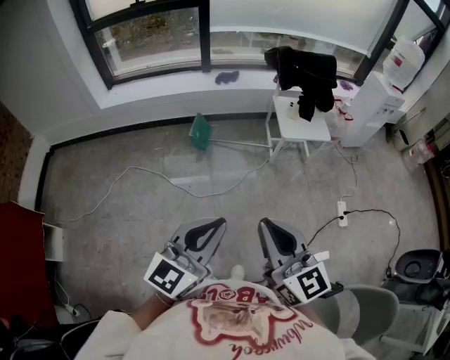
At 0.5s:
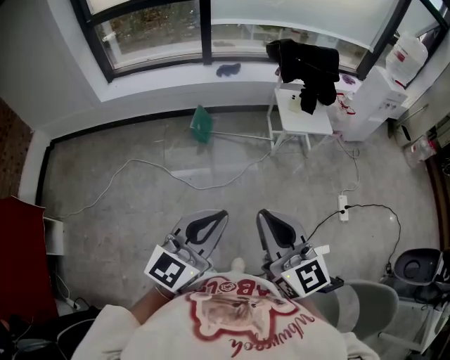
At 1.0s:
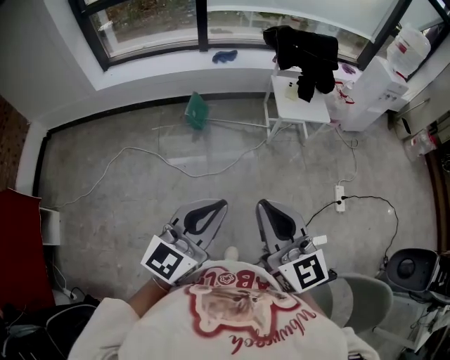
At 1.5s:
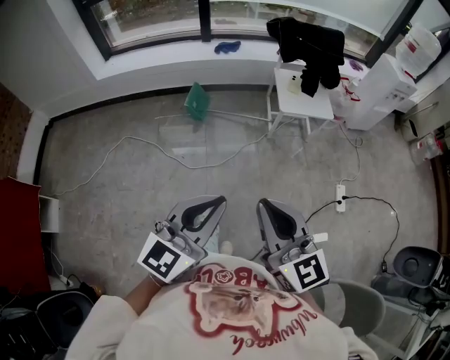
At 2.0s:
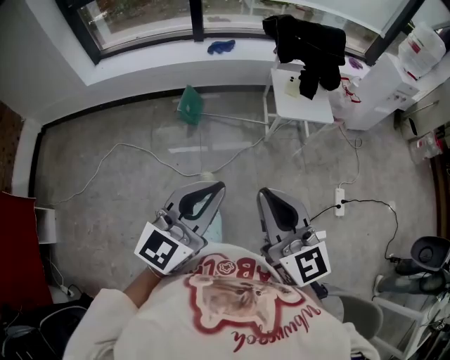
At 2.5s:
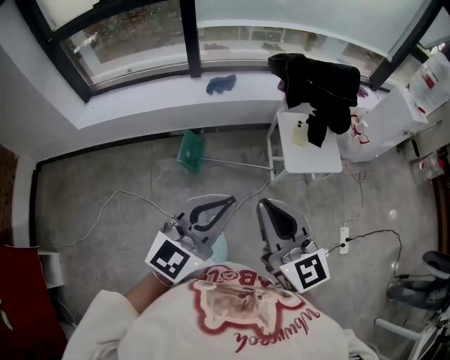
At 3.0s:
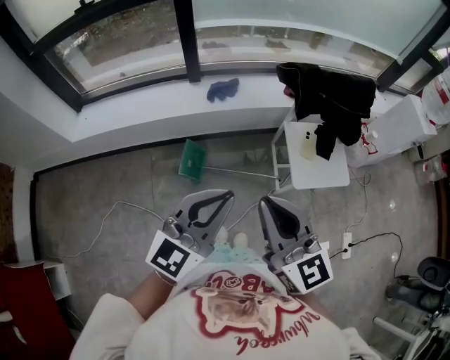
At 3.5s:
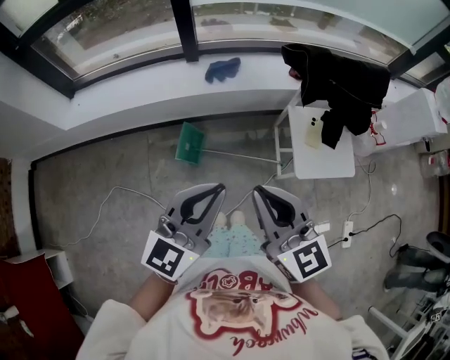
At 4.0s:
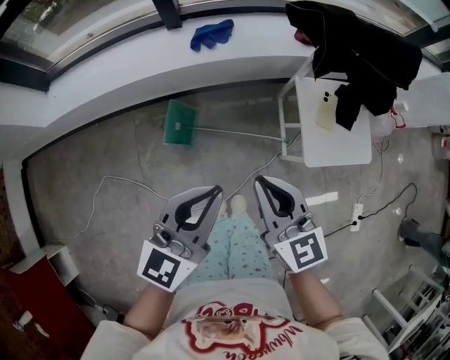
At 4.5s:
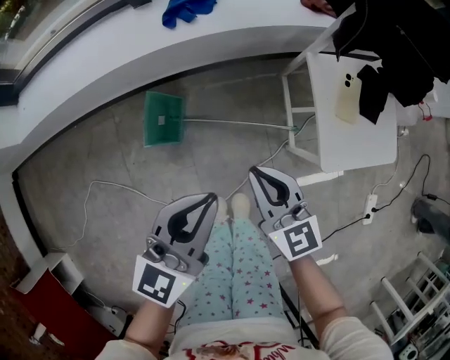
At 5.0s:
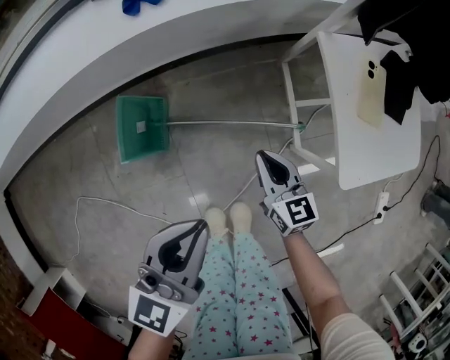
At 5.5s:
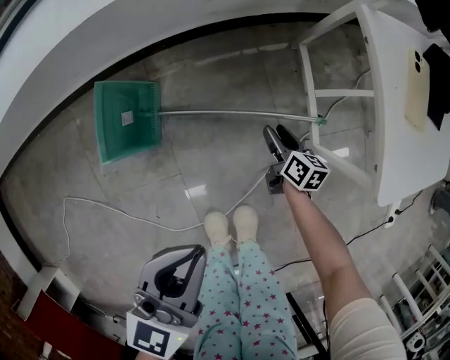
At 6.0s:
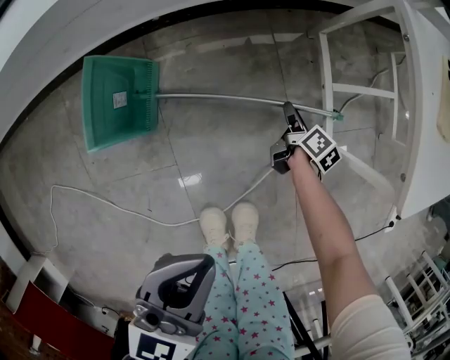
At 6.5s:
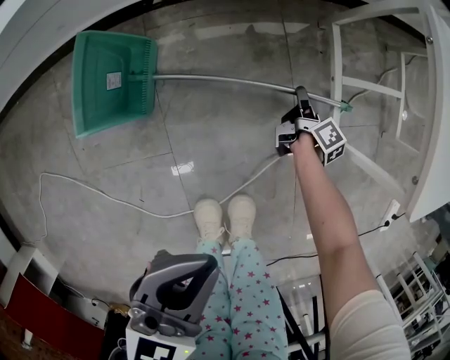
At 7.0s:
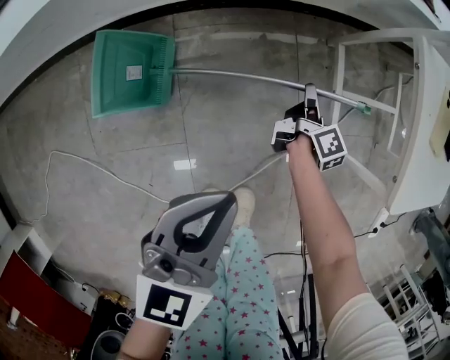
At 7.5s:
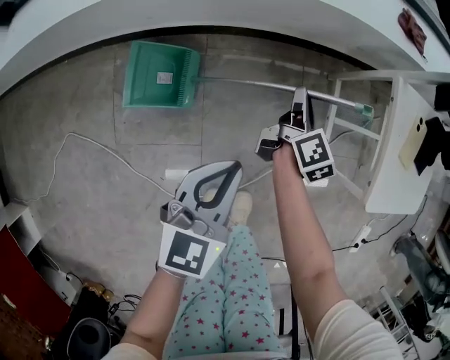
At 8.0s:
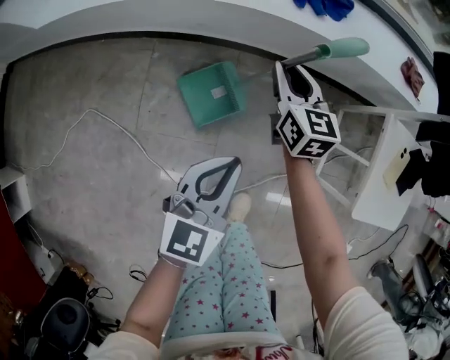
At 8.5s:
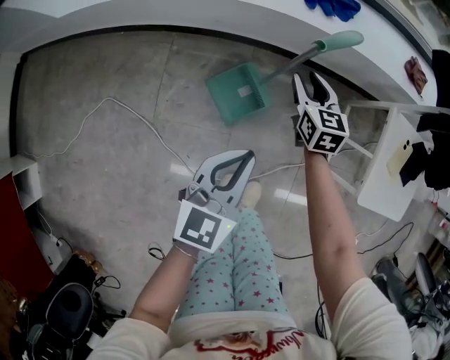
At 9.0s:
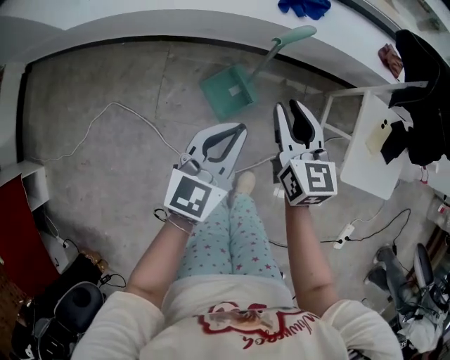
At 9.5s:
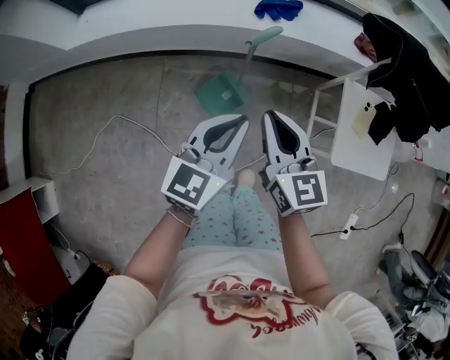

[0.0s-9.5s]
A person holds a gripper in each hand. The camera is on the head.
0.0s to 2.0s: Both grippers travel together forward and to the right, about 15 cm.
2.0s to 4.0s: Both grippers are carried forward, some 50 cm.
4.0s to 5.5s: The left gripper shifts approximately 40 cm downward; the right gripper is displaced downward by some 70 cm, twists some 40 degrees clockwise, seen from behind, and opens.
5.5s to 7.5s: The left gripper moves to the left, about 5 cm. The right gripper heads upward and to the left, covering about 25 cm, turns by approximately 30 degrees, and closes its fingers.
7.5s to 9.5s: The right gripper shifts about 40 cm upward and backward, and swivels some 60 degrees, while the left gripper travels upward by some 30 cm.

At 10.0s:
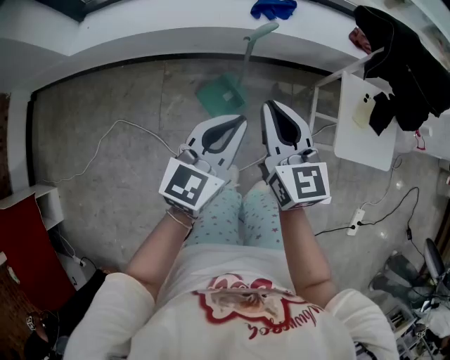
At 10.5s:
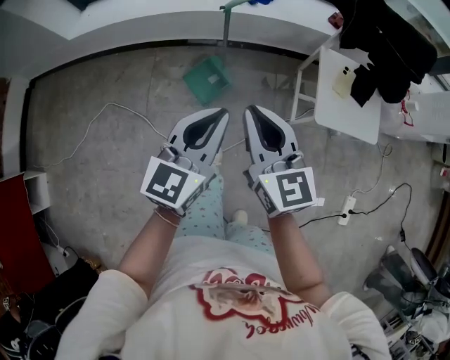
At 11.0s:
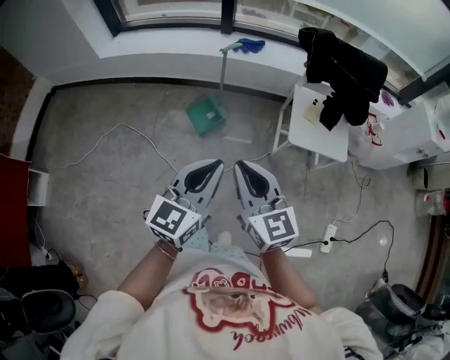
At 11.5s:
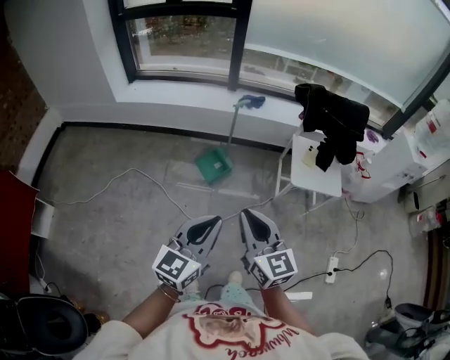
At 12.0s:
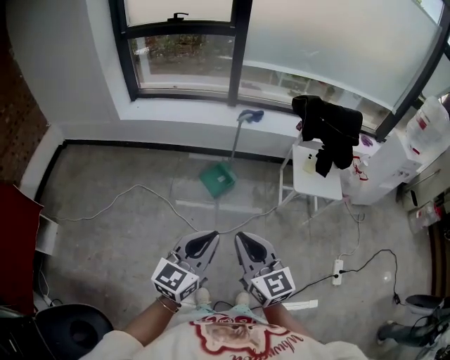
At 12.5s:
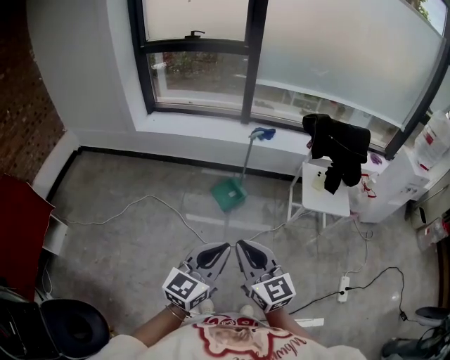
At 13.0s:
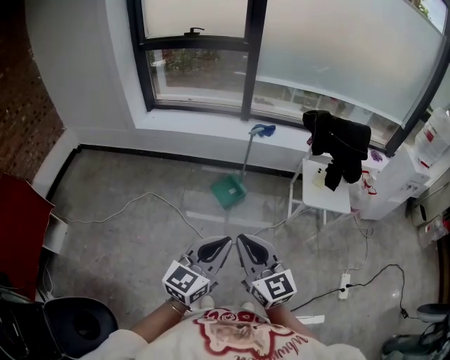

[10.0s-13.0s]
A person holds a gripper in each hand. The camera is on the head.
10.0s to 11.5s: Both grippers are carried backward, roughly 50 cm.
11.5s to 13.0s: The right gripper shifts some 10 cm backward and to the left, while the left gripper travels backward by some 5 cm.

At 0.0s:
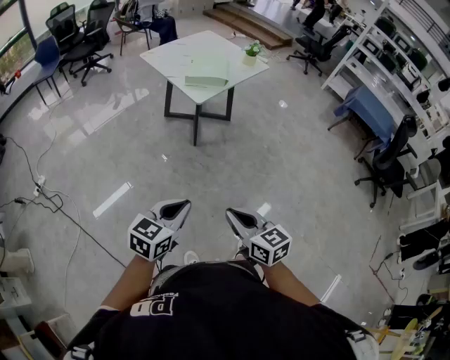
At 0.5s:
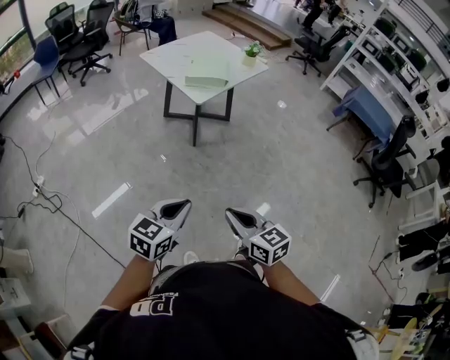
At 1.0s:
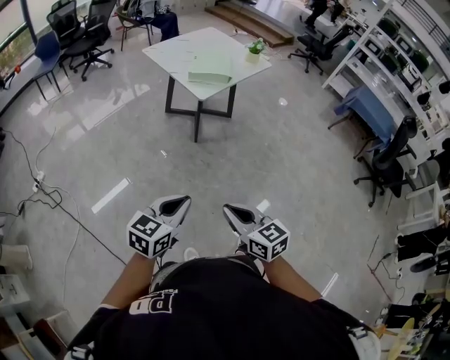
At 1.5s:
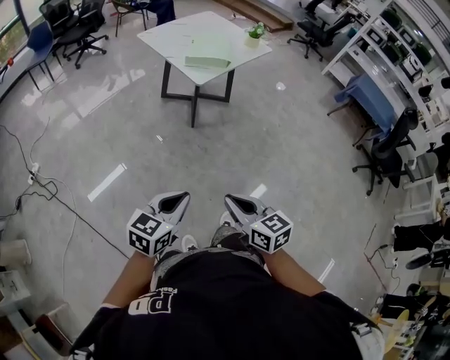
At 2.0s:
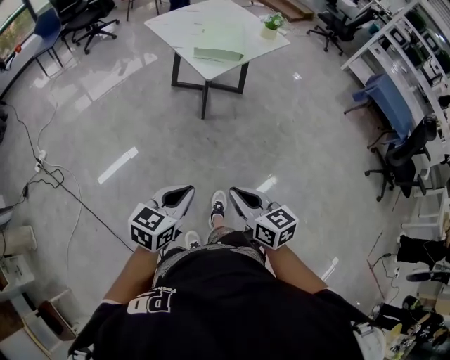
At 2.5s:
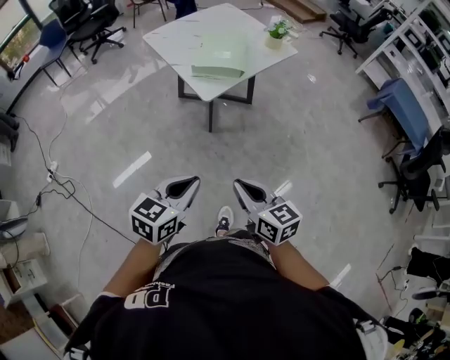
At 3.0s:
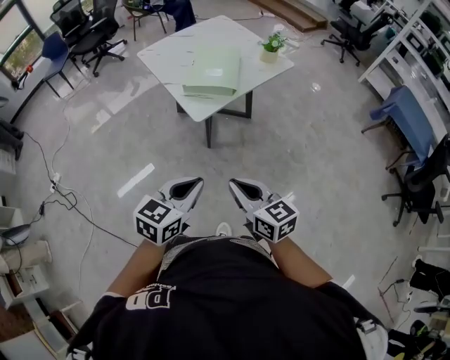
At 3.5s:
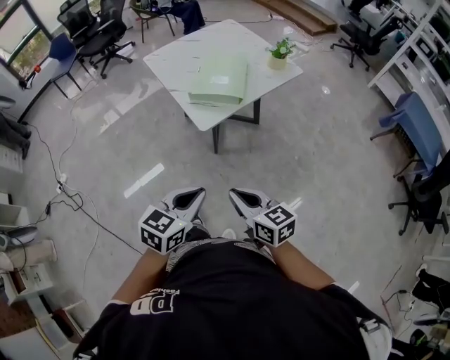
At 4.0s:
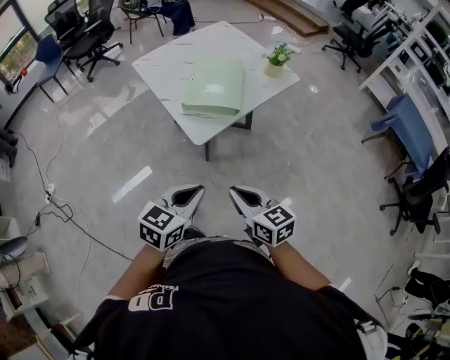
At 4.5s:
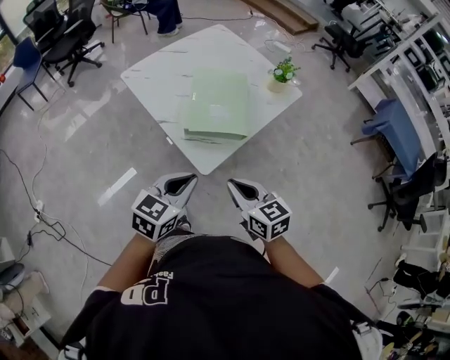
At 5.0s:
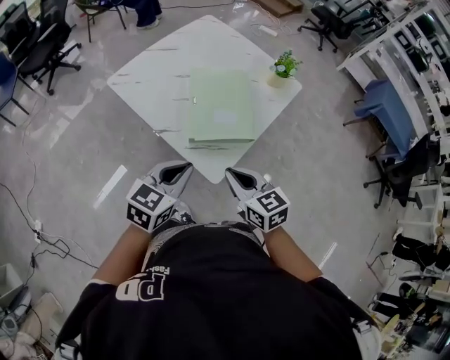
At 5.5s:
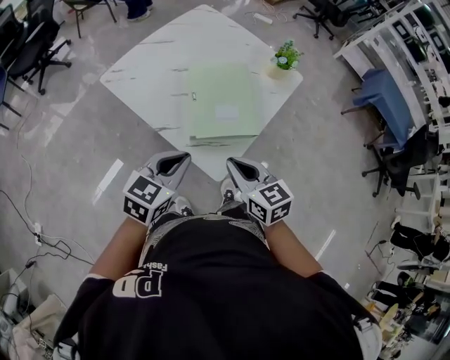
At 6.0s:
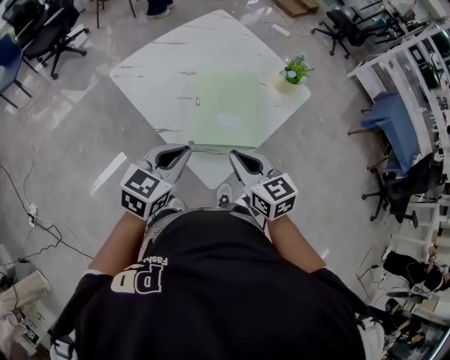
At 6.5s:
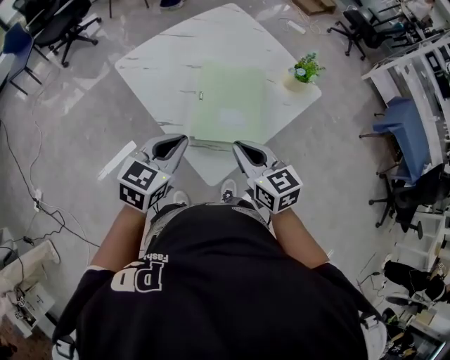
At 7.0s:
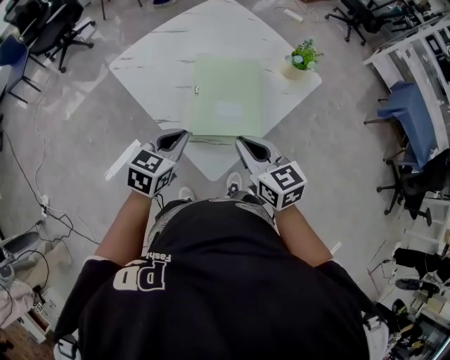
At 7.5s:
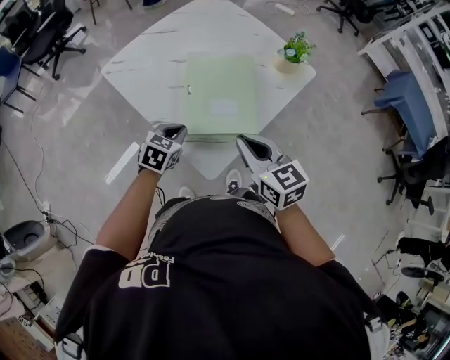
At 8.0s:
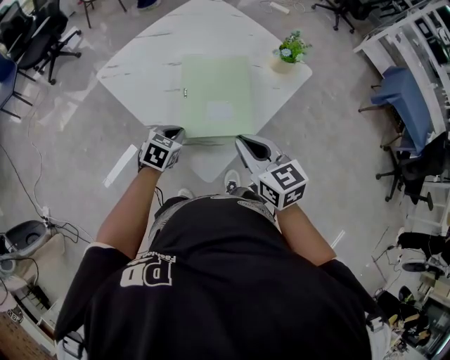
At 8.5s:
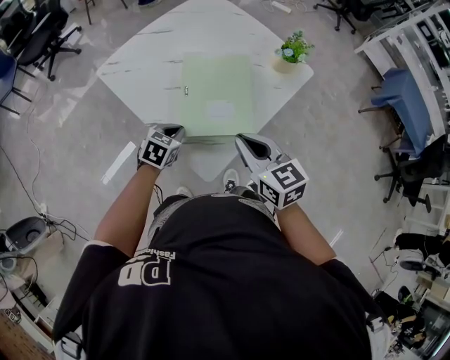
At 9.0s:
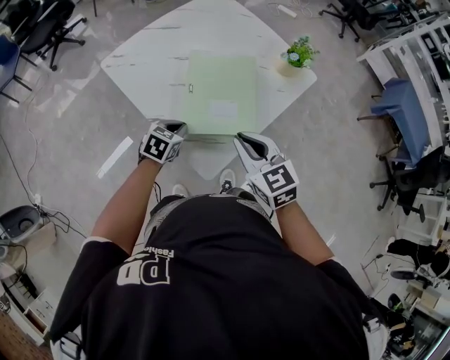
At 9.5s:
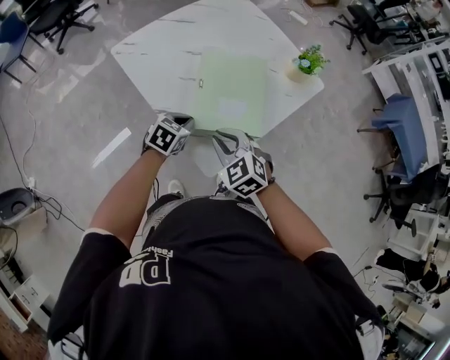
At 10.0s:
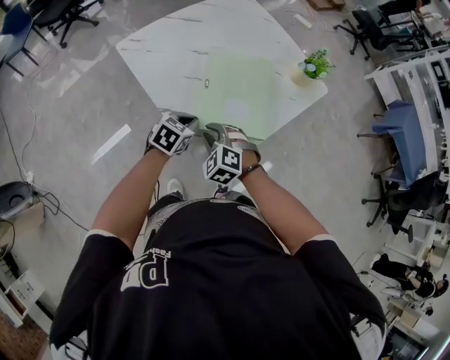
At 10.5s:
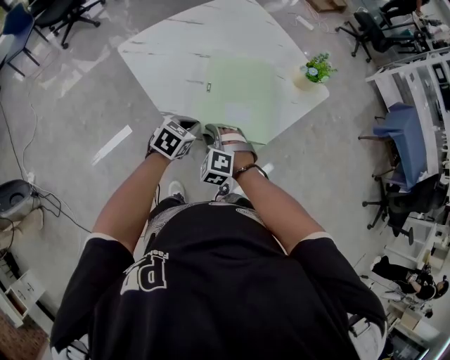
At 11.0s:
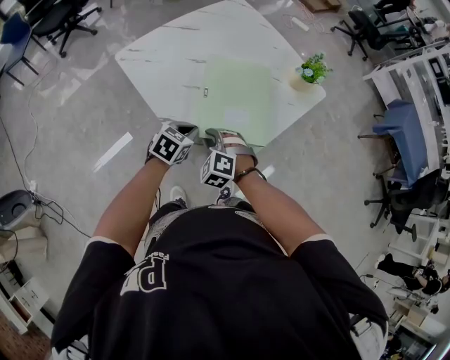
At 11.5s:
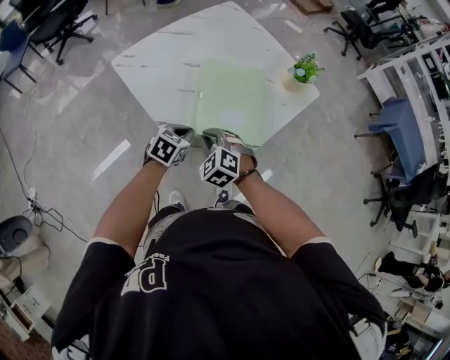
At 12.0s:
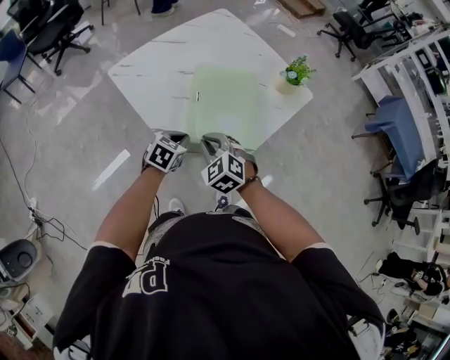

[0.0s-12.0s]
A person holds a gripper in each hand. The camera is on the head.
0.0s to 2.0s: Both grippers travel together forward, approximately 10 cm.
2.0s to 4.0s: Both grippers travel together forward, roughly 30 cm.
4.0s to 6.0s: The two grippers go some 35 cm forward and to the left.
6.0s to 8.0s: The right gripper travels to the right by roughly 5 cm. The left gripper heads downward and forward, covering about 20 cm, and swivels roughly 30 degrees.
8.0s to 10.0s: The right gripper goes roughly 20 cm downward and to the left, and twists roughly 50 degrees counterclockwise, seen from behind.
10.0s to 12.0s: The right gripper is displaced upward by approximately 5 cm.

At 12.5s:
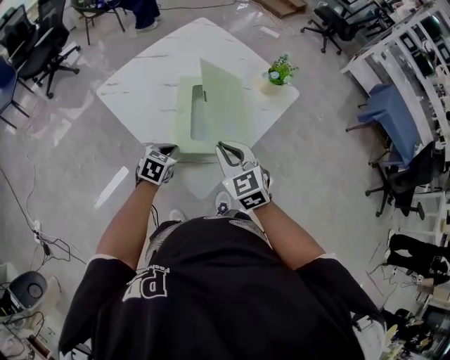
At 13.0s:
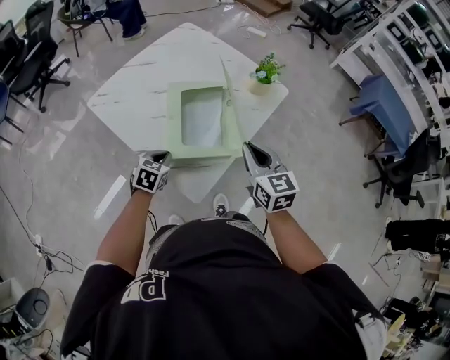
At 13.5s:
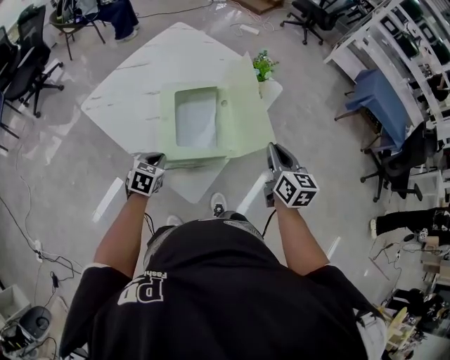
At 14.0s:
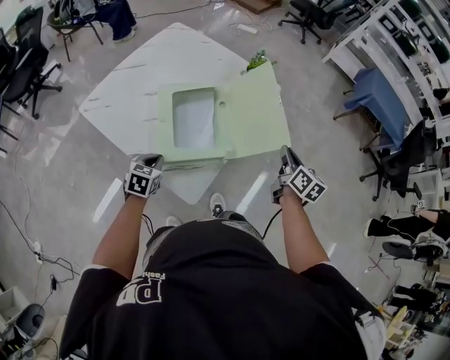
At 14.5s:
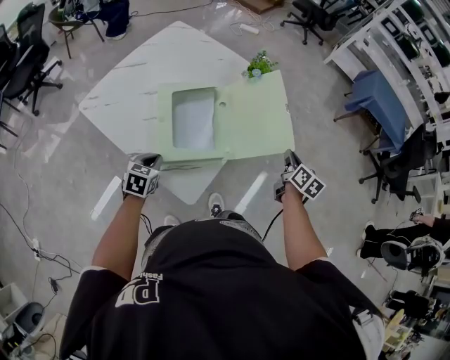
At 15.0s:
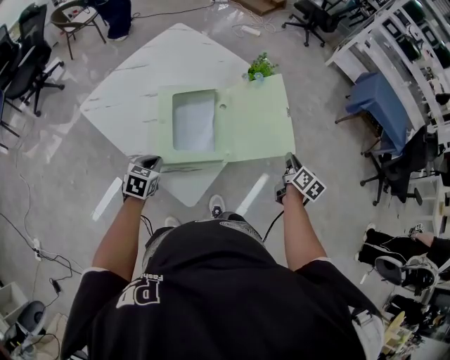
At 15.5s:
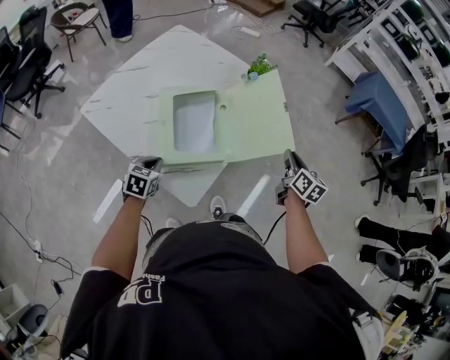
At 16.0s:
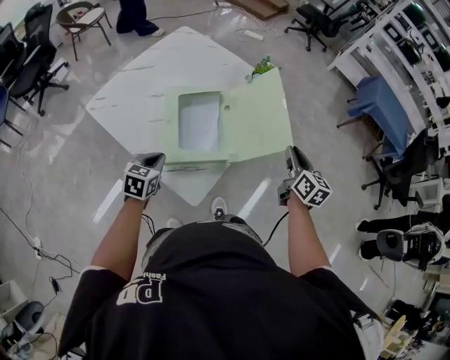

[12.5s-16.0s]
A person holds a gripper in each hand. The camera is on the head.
12.5s to 14.5s: The right gripper shifts some 35 cm to the right, and rotates around the line of its fingers by some 60 degrees, clockwise from behind.
14.5s to 16.0s: The right gripper moves upward and to the left, about 10 cm.
